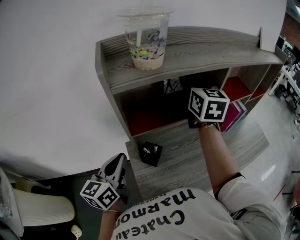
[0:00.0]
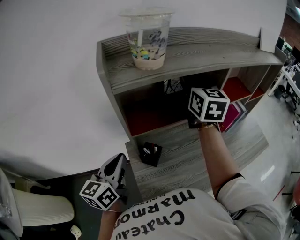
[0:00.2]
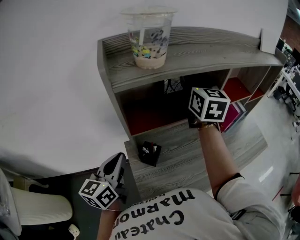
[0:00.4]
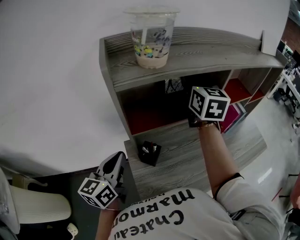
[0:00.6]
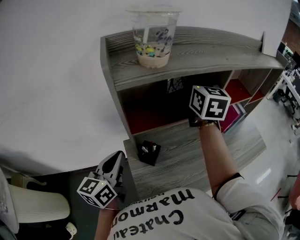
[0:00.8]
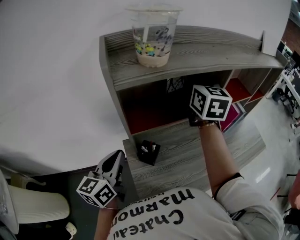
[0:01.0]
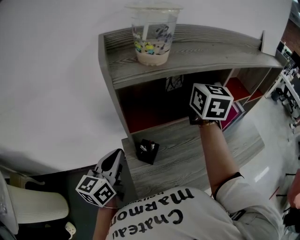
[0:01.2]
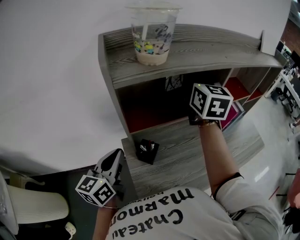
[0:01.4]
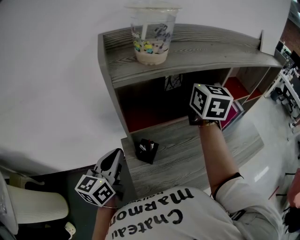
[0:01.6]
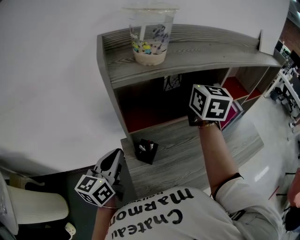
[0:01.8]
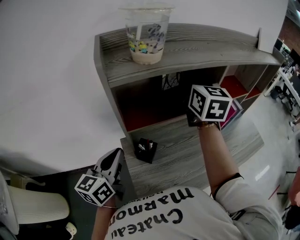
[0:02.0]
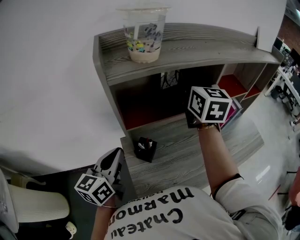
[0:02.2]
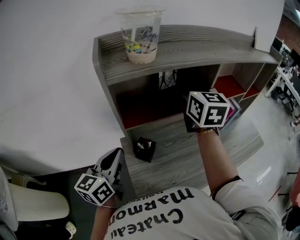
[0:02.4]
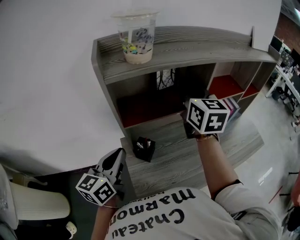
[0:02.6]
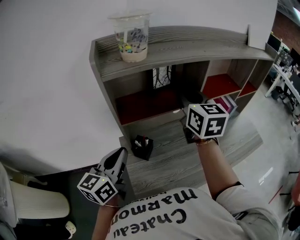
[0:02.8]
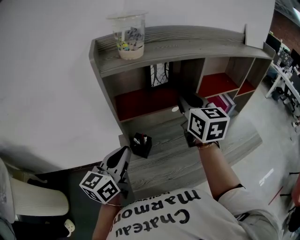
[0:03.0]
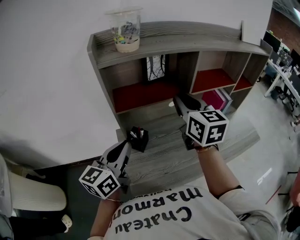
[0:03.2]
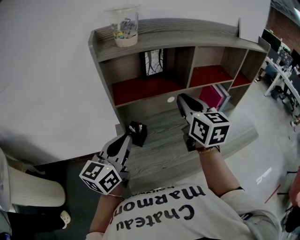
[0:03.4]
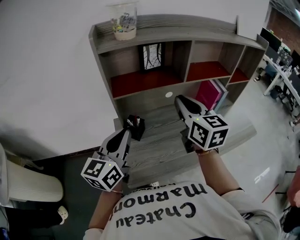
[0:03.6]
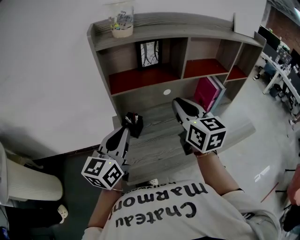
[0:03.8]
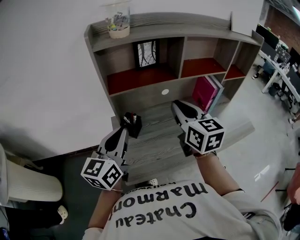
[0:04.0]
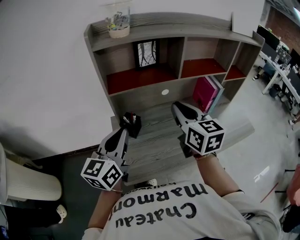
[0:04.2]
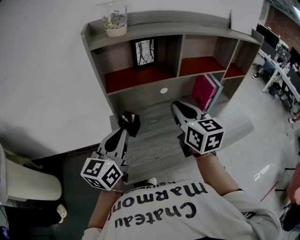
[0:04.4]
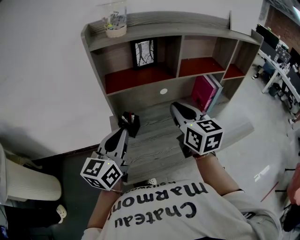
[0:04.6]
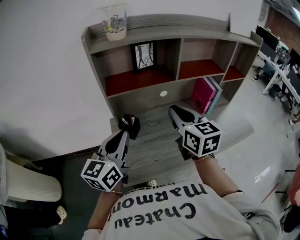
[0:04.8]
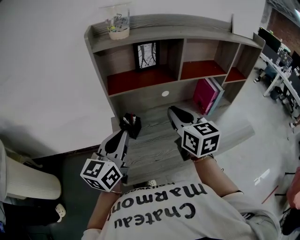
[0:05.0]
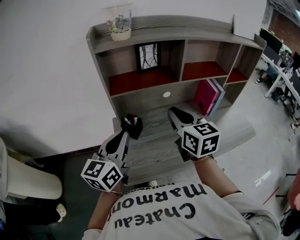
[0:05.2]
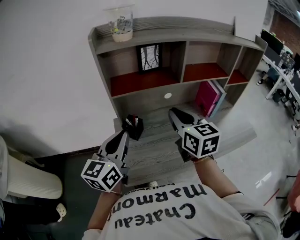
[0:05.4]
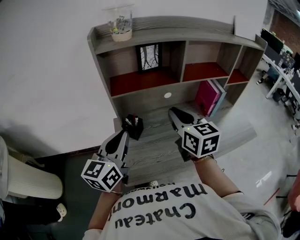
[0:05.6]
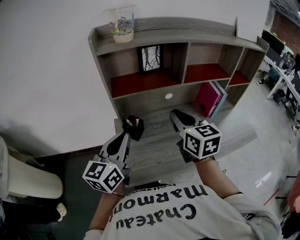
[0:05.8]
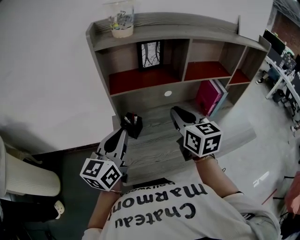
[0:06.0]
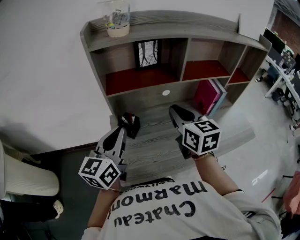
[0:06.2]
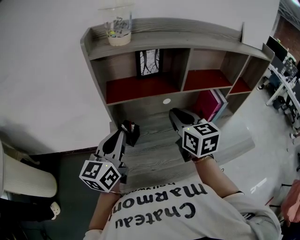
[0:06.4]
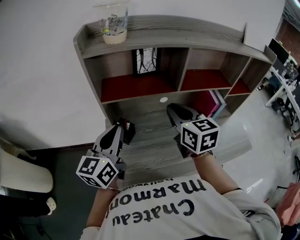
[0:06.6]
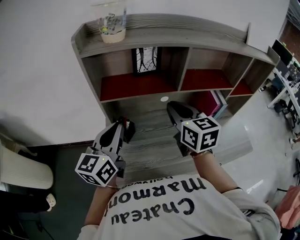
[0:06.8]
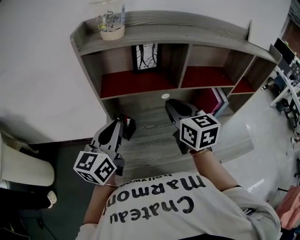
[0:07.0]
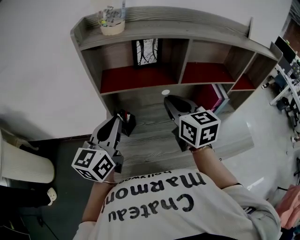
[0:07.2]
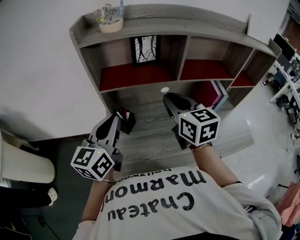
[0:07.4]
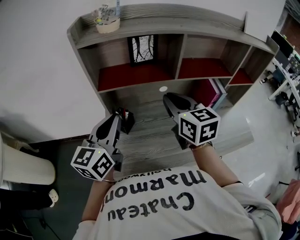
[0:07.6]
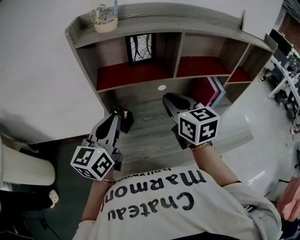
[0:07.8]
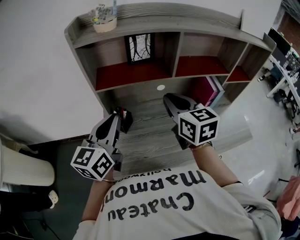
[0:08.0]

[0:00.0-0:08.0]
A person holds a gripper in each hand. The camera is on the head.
0:00.0 to 0:01.6: The grippers make only small movements.
0:01.6 to 0:03.2: The left gripper travels to the right and backward by approximately 10 cm, while the right gripper shifts some 15 cm backward.
0:03.2 to 0:04.8: The right gripper travels backward and downward by approximately 10 cm. Meanwhile the left gripper shifts by approximately 5 cm.
0:04.8 to 0:06.4: The right gripper heads forward, covering roughly 5 cm.
0:06.4 to 0:08.0: There are only small adjustments of the grippers.

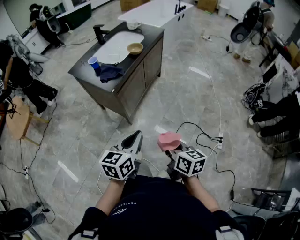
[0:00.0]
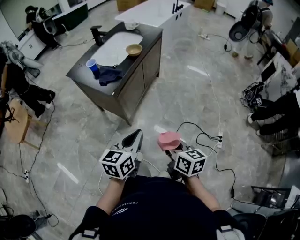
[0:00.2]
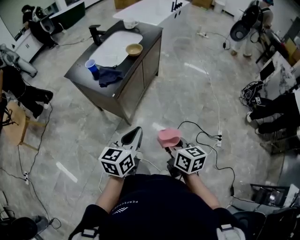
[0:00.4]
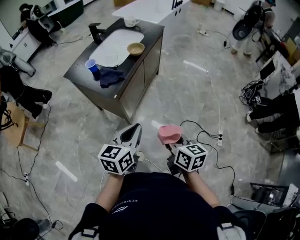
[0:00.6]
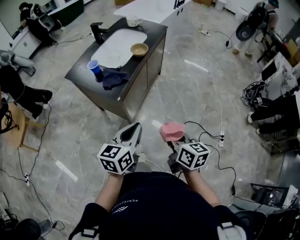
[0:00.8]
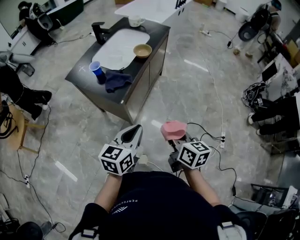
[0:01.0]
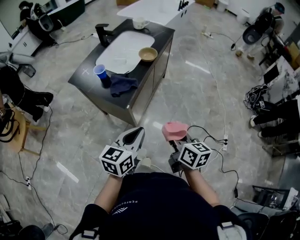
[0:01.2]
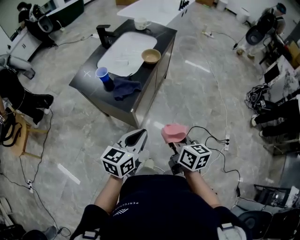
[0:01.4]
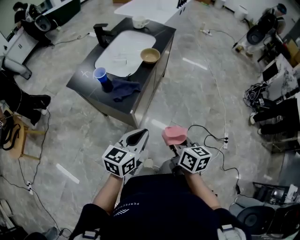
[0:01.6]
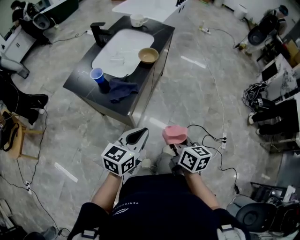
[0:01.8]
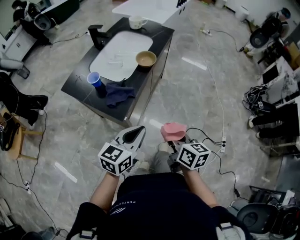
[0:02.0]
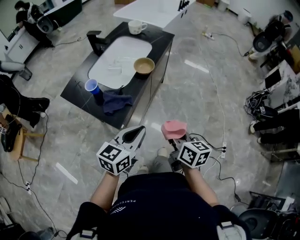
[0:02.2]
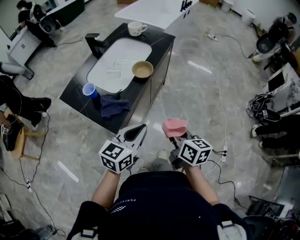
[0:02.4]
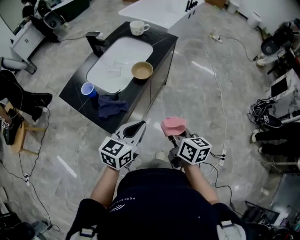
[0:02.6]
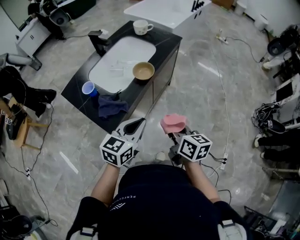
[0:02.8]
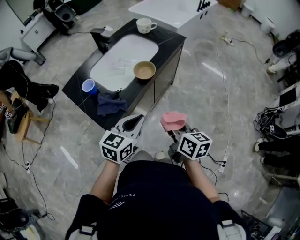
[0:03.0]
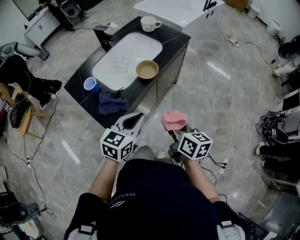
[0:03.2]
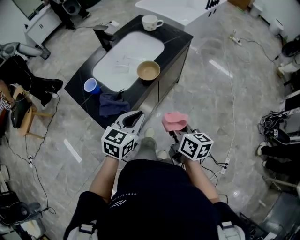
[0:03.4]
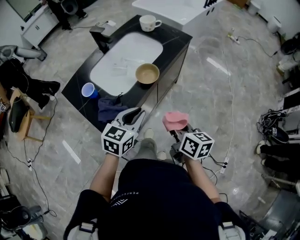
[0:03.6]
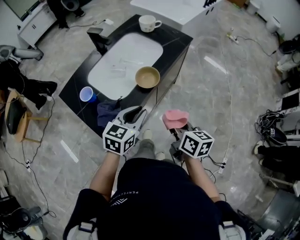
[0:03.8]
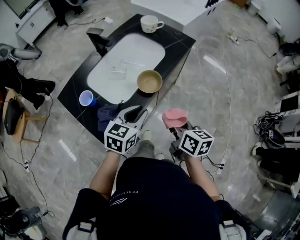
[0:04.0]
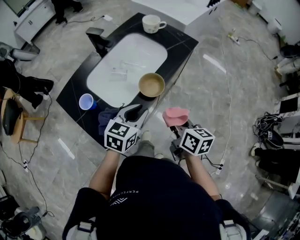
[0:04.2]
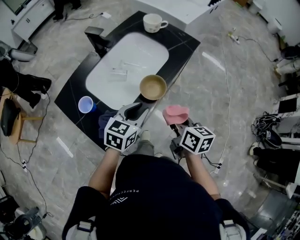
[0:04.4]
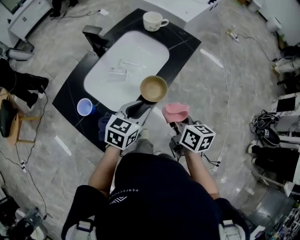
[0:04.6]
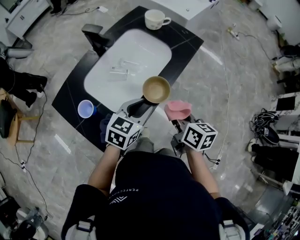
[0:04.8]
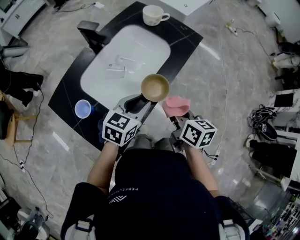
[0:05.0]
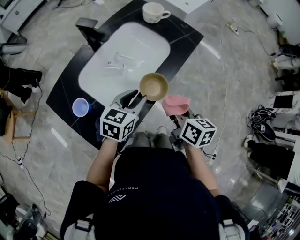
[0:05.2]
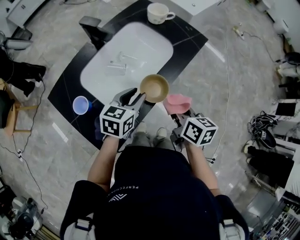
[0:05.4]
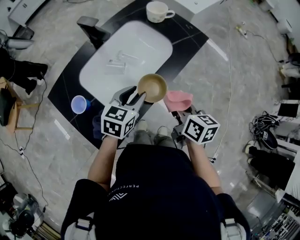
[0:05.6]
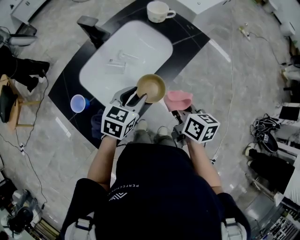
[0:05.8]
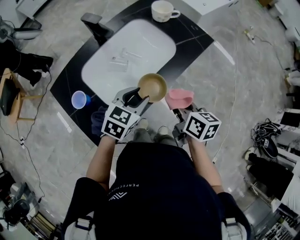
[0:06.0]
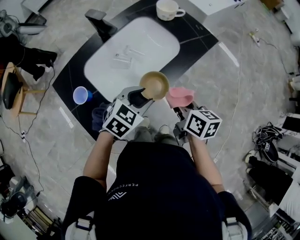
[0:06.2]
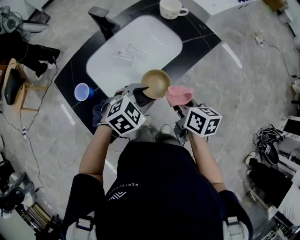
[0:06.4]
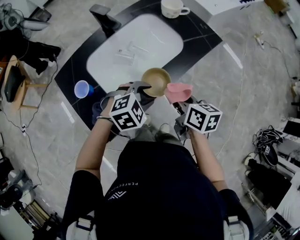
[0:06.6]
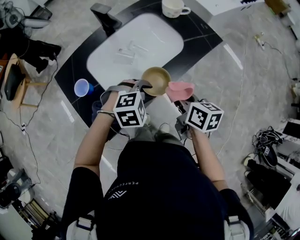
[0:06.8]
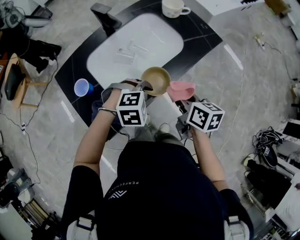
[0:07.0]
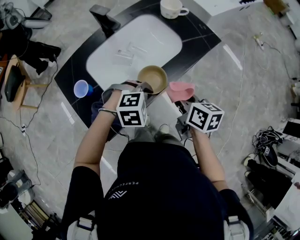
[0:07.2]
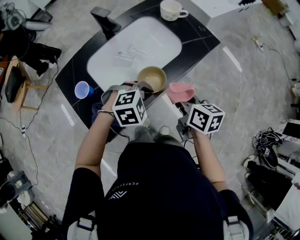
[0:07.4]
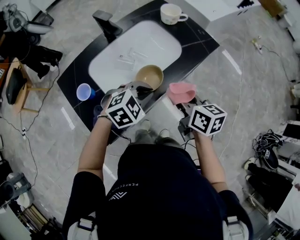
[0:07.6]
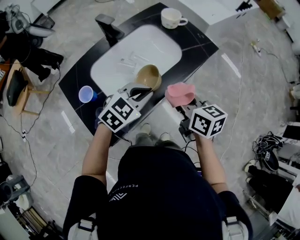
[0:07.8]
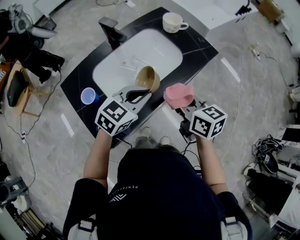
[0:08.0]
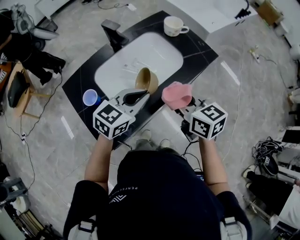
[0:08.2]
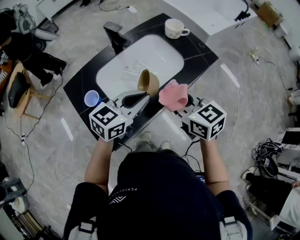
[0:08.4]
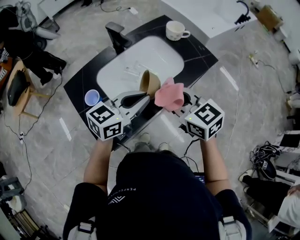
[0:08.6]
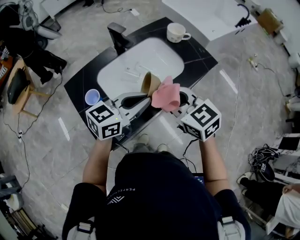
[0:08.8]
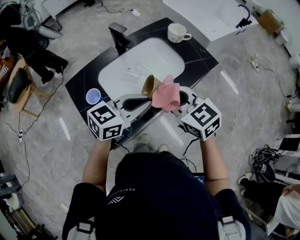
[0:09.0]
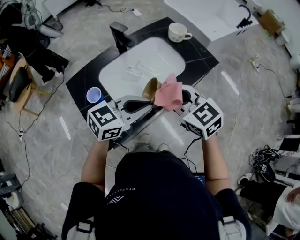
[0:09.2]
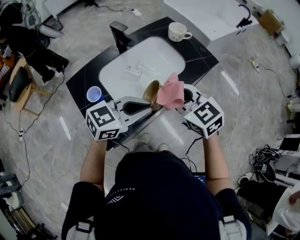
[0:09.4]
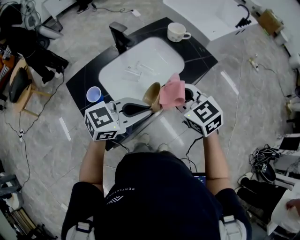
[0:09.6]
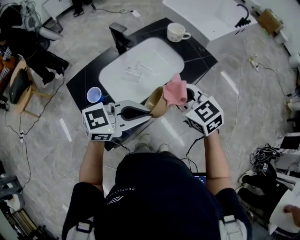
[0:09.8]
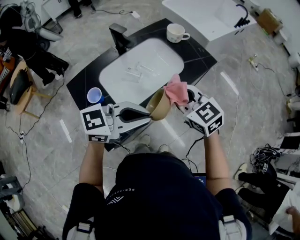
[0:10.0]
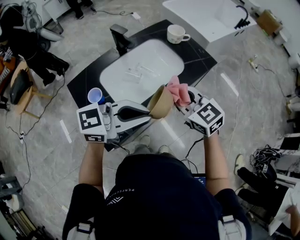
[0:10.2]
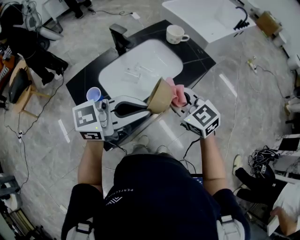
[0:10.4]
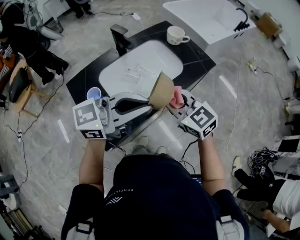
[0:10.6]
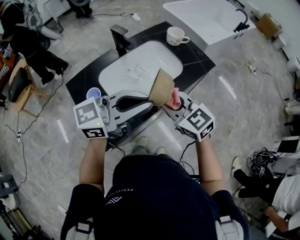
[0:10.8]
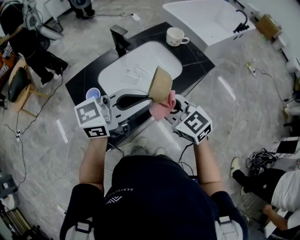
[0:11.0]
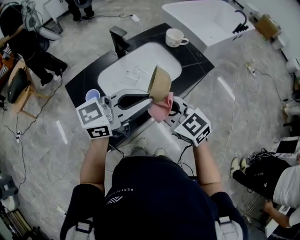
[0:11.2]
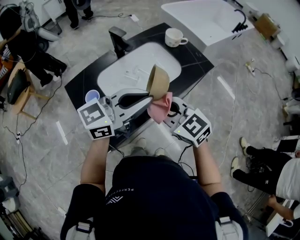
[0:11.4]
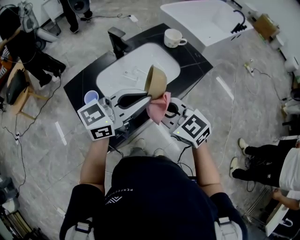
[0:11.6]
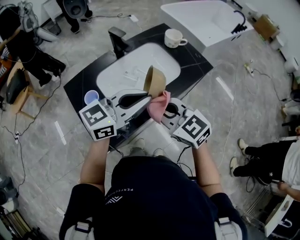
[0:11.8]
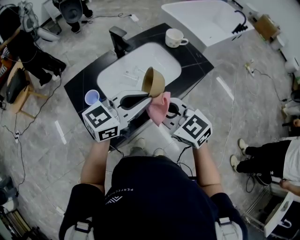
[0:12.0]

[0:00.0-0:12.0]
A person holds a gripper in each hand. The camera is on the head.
0:00.0 to 0:01.6: The grippers both shift forward and to the left by about 20 cm.
0:01.6 to 0:03.0: The left gripper moves forward and to the right, approximately 20 cm, while the right gripper goes about 20 cm forward.
0:03.0 to 0:04.4: Both grippers move forward, about 15 cm. The left gripper opens.
0:04.4 to 0:06.0: Both grippers move forward, some 10 cm.
0:06.0 to 0:07.6: The left gripper swivels roughly 30 degrees, and closes up.
0:07.6 to 0:09.0: The right gripper heads upward and to the left, covering roughly 10 cm, and twists about 40 degrees counterclockwise, seen from behind. Meanwhile the left gripper moves upward, some 10 cm, and points its fingers about 40 degrees further upward.
0:09.0 to 0:10.4: The left gripper travels upward by some 10 cm, and changes its angle by roughly 20 degrees.
0:10.4 to 0:12.0: The left gripper ends up about 5 cm from where it was. The right gripper ends up roughly 5 cm from where it was.

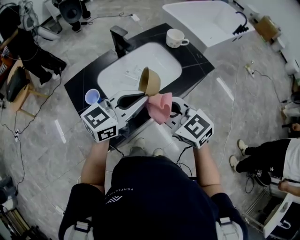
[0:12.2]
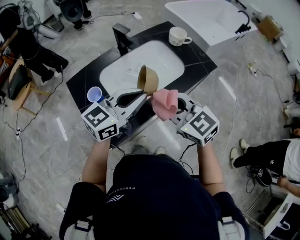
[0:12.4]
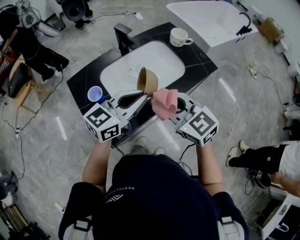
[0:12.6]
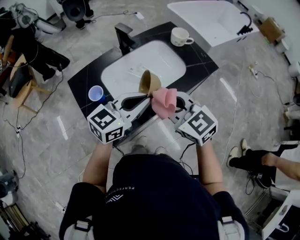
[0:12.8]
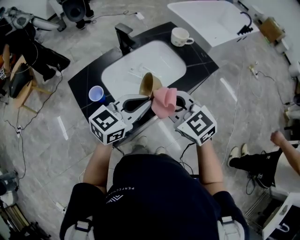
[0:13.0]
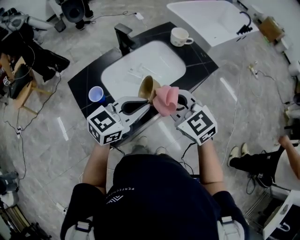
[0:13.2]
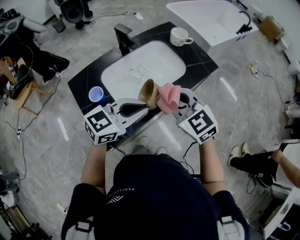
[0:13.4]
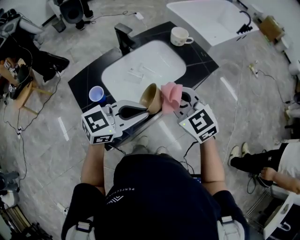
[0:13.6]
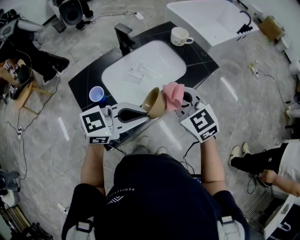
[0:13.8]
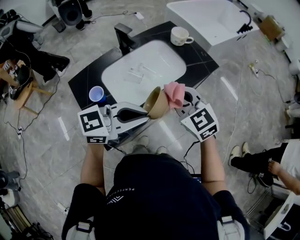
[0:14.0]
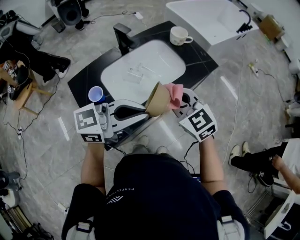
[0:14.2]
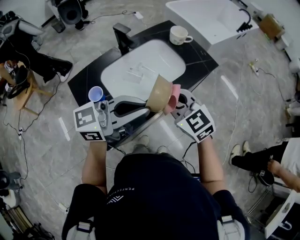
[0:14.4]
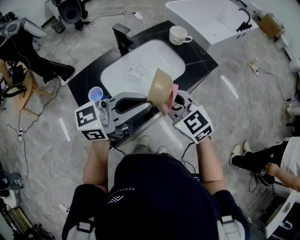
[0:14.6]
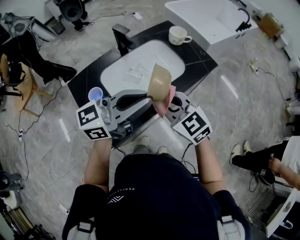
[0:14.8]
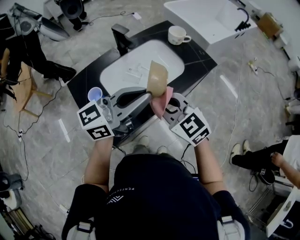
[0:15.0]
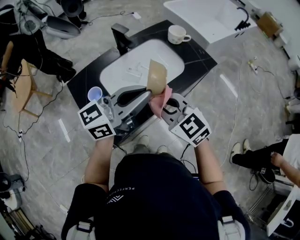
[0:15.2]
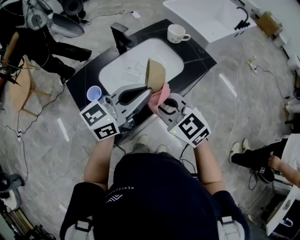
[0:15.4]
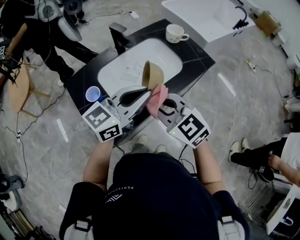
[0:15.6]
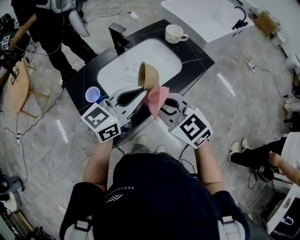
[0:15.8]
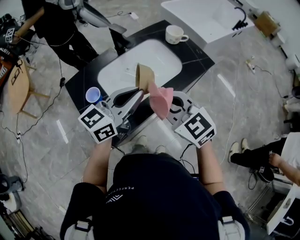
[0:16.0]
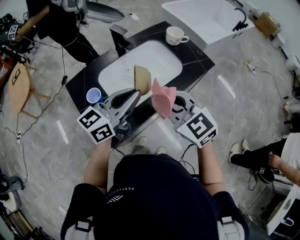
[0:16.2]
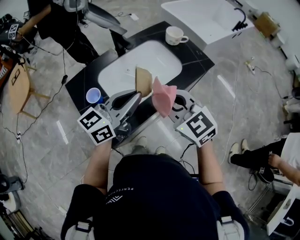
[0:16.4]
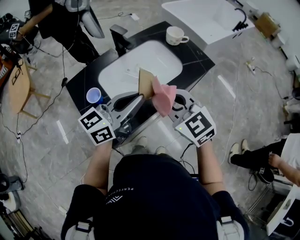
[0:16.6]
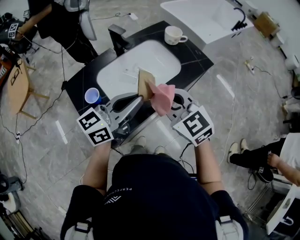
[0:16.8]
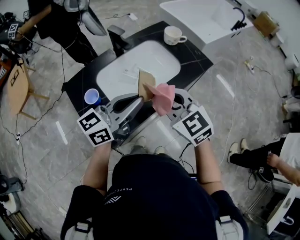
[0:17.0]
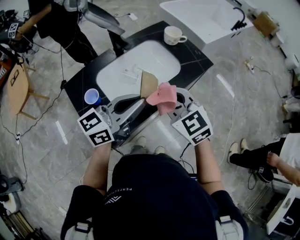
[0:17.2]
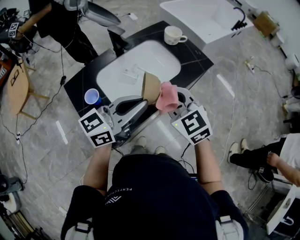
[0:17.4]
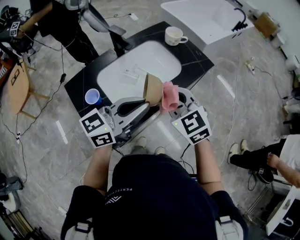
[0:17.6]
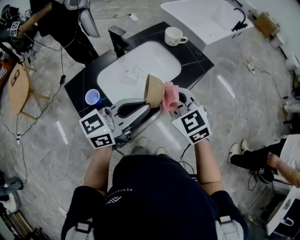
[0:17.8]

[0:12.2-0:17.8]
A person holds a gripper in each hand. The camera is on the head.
0:12.2 to 0:13.6: The left gripper travels backward by approximately 5 cm.
0:13.6 to 0:15.0: The left gripper heads upward, covering some 10 cm, and changes its angle by roughly 30 degrees.
0:15.0 to 0:16.4: The left gripper shifts by roughly 5 cm.
0:16.4 to 0:17.8: The grippers move only a little.
